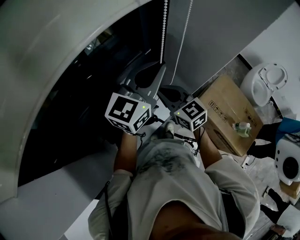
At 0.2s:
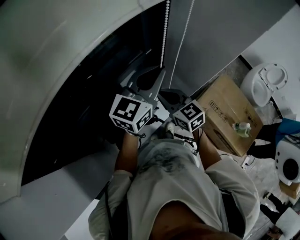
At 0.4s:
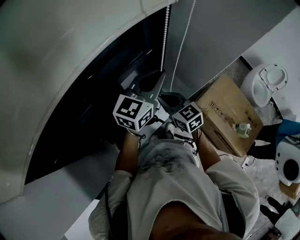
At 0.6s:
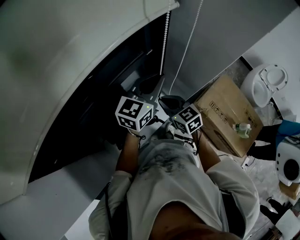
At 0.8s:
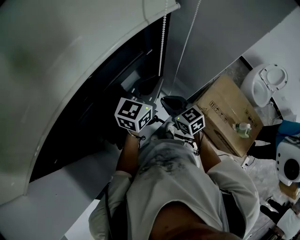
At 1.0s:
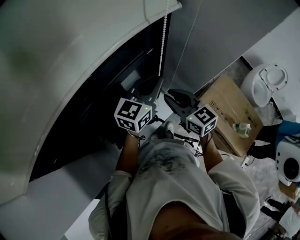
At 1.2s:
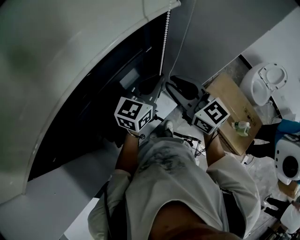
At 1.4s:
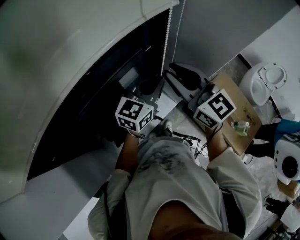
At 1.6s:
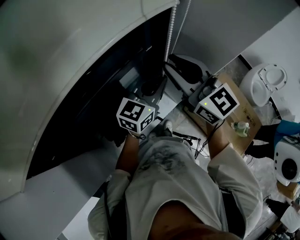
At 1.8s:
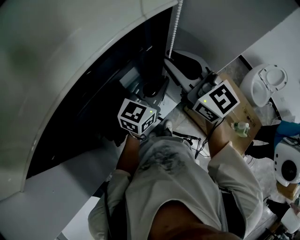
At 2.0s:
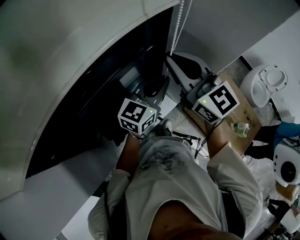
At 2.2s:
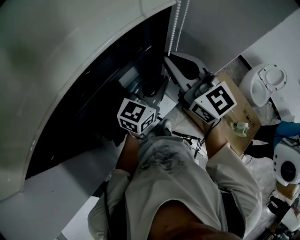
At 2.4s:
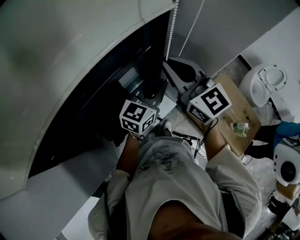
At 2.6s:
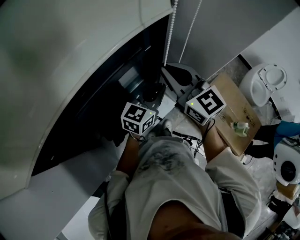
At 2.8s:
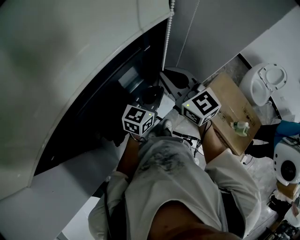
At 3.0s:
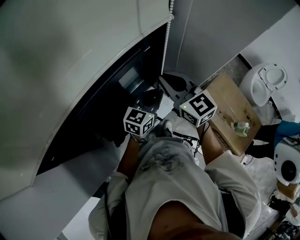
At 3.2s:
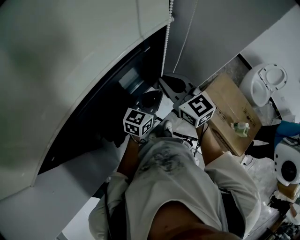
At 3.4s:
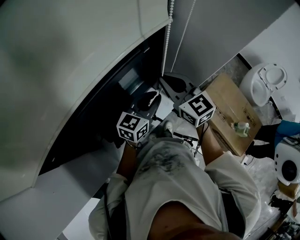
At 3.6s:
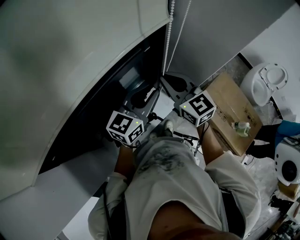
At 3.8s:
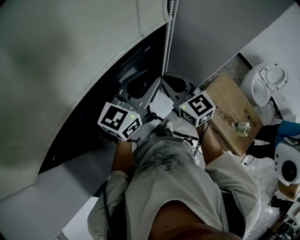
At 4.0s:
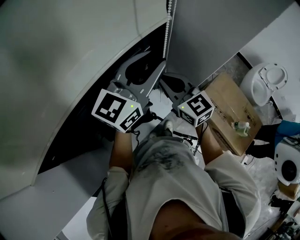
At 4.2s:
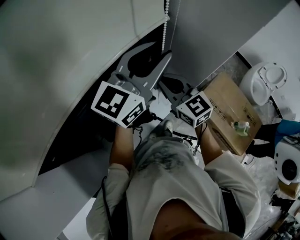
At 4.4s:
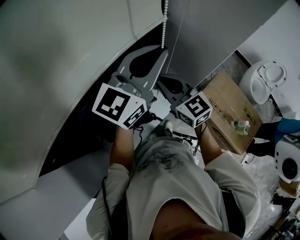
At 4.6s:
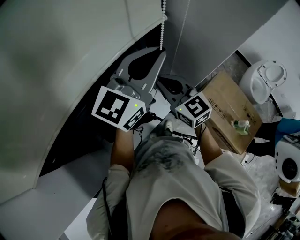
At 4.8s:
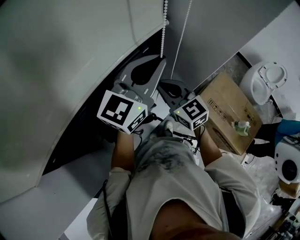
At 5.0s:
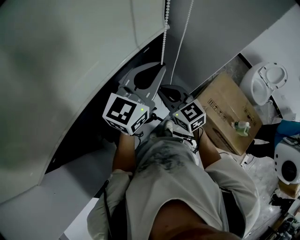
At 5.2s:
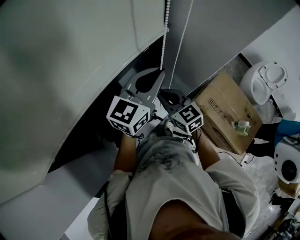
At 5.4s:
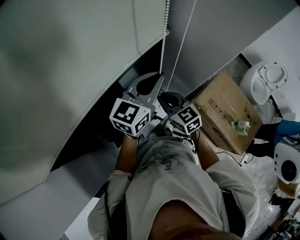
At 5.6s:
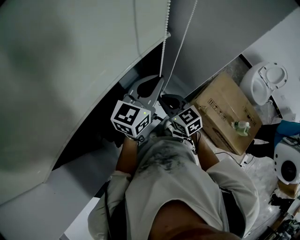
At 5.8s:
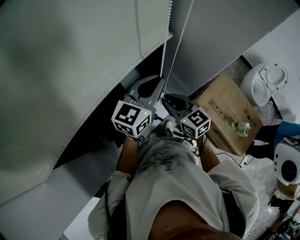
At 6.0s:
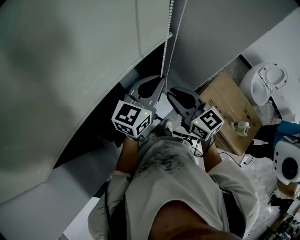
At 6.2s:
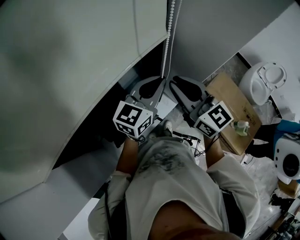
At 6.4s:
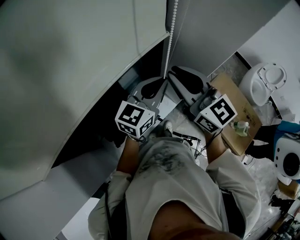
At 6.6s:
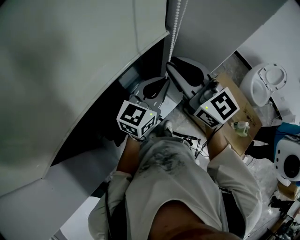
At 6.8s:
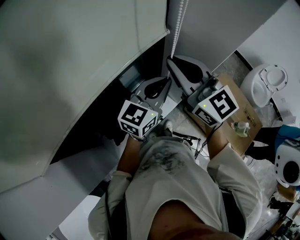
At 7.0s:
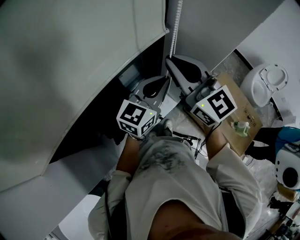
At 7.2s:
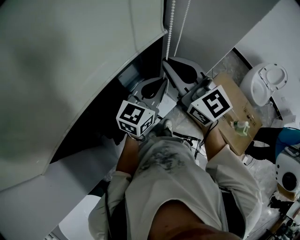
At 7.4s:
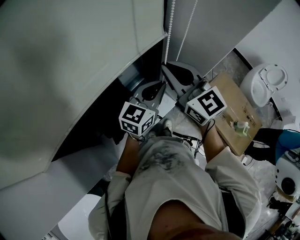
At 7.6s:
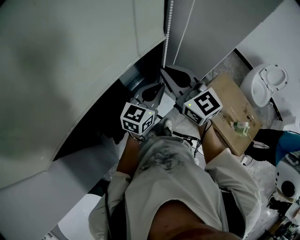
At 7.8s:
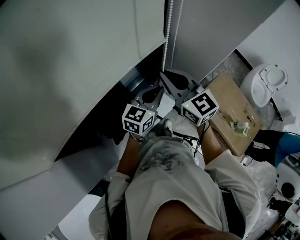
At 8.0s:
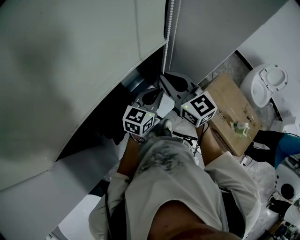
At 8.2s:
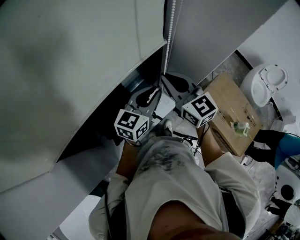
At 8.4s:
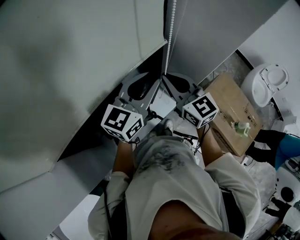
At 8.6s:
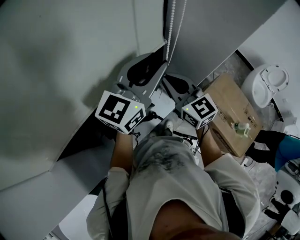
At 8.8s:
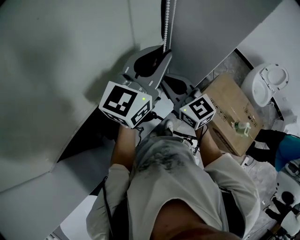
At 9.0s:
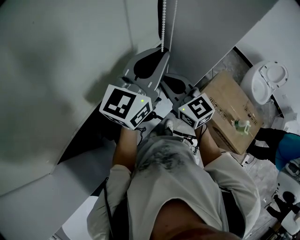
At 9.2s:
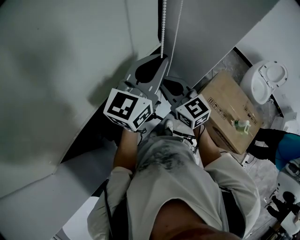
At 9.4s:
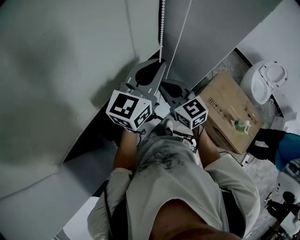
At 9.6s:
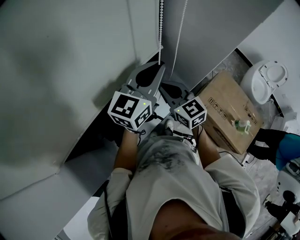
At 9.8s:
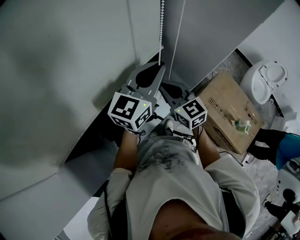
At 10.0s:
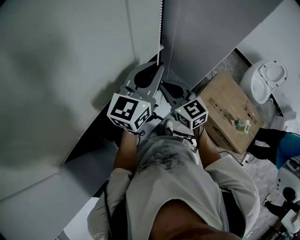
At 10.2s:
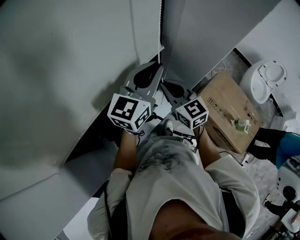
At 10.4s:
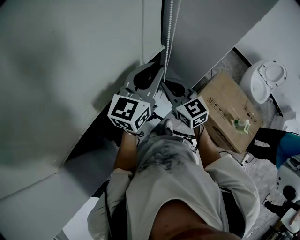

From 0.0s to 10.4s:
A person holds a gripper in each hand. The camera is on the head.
From 0.0s to 1.4s: The left gripper moves downward, some 10 cm. The right gripper is displaced upward by approximately 15 cm.
From 1.4s to 3.0s: The right gripper heads downward, covering some 5 cm. Meanwhile the left gripper travels downward by some 10 cm.
From 3.0s to 4.4s: The left gripper moves upward, approximately 25 cm, swivels approximately 30 degrees, and opens, then closes once more.
From 4.4s to 6.0s: The left gripper travels downward by roughly 15 cm; the right gripper travels downward and back again, about 15 cm each way.
From 6.0s to 7.4s: The right gripper goes about 10 cm upward; the left gripper shifts by approximately 5 cm.
From 7.4s to 9.0s: The right gripper goes some 5 cm downward, while the left gripper travels upward by approximately 15 cm, and opens, then closes again.
From 9.0s to 10.4s: Both grippers travel together downward, about 5 cm.

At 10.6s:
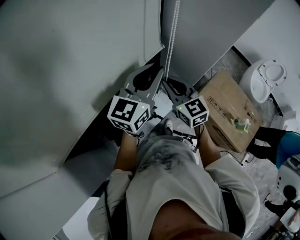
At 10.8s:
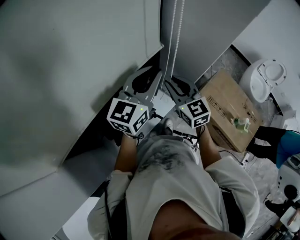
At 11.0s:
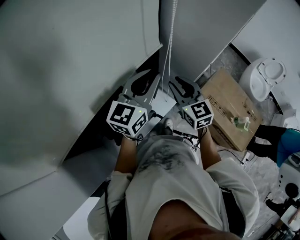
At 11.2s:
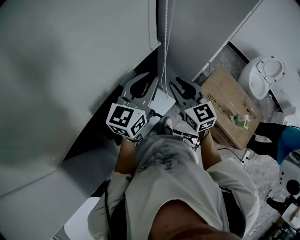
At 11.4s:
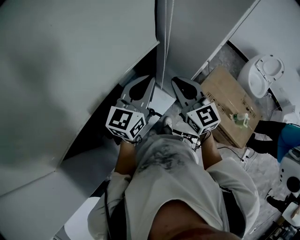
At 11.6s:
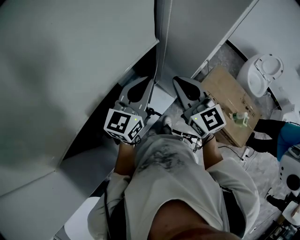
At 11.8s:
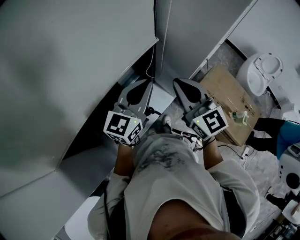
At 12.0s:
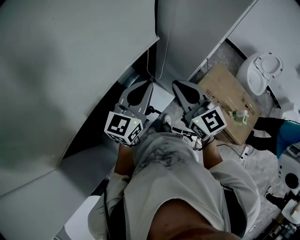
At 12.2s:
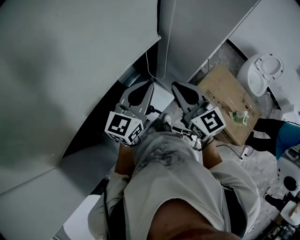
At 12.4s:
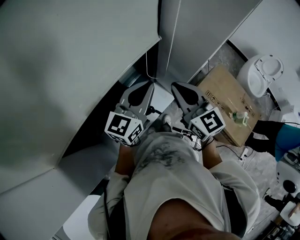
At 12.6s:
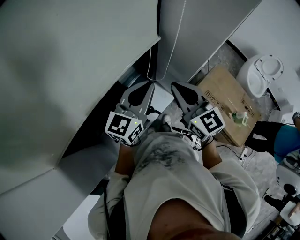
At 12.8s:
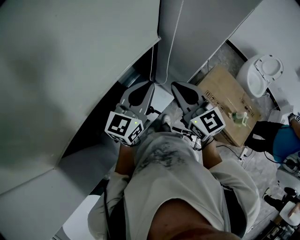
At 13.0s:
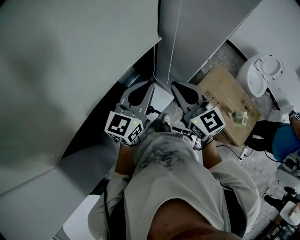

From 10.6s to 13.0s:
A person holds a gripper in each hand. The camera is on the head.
From 10.6s to 11.8s: The left gripper travels backward by some 5 cm, while the right gripper shifts some 10 cm upward and backward, and opens, then closes again.
From 11.8s to 13.0s: The grippers make only small movements.

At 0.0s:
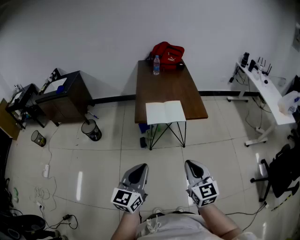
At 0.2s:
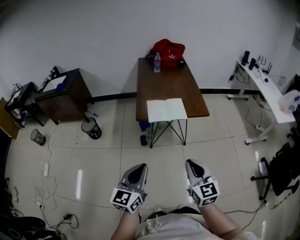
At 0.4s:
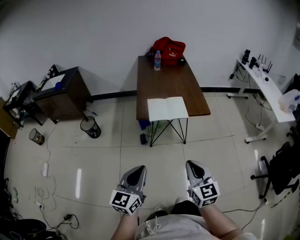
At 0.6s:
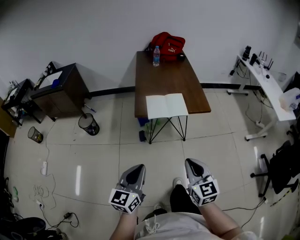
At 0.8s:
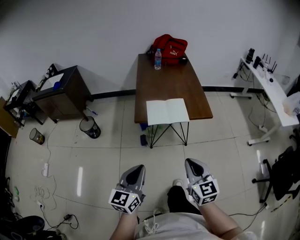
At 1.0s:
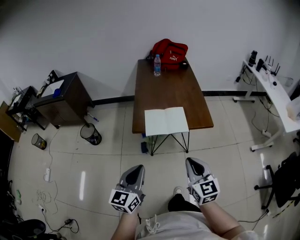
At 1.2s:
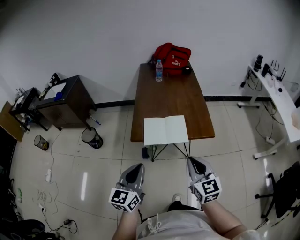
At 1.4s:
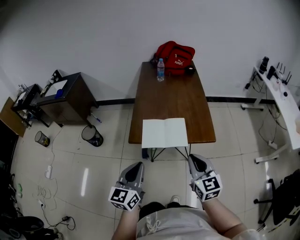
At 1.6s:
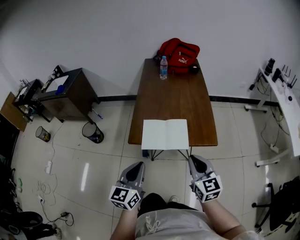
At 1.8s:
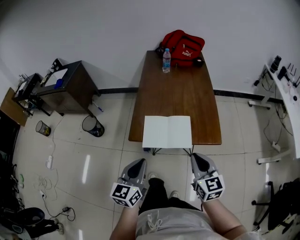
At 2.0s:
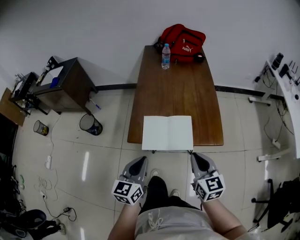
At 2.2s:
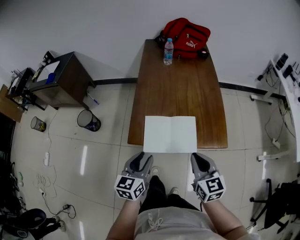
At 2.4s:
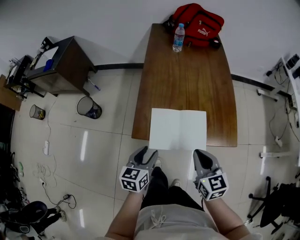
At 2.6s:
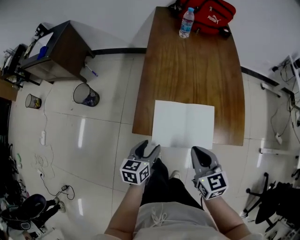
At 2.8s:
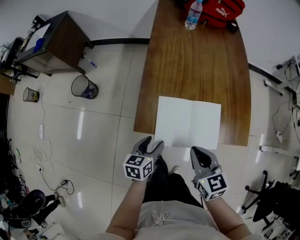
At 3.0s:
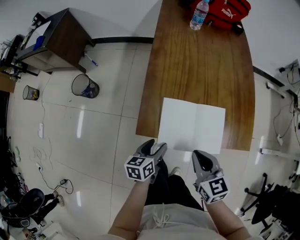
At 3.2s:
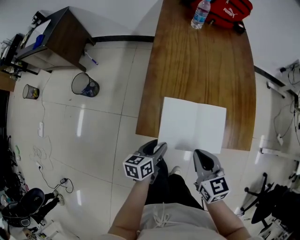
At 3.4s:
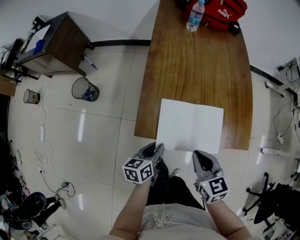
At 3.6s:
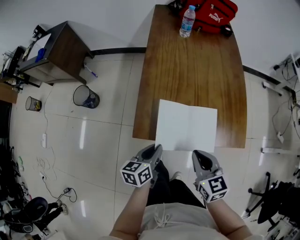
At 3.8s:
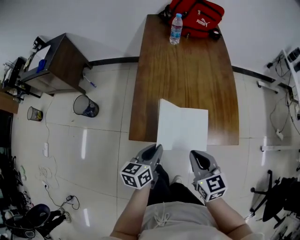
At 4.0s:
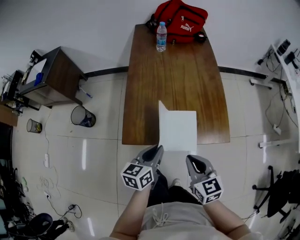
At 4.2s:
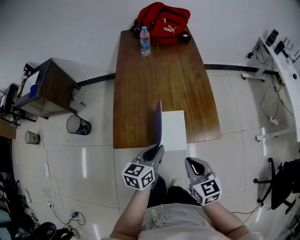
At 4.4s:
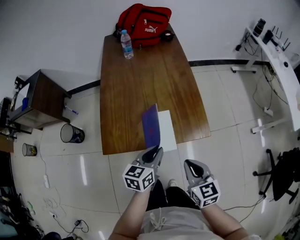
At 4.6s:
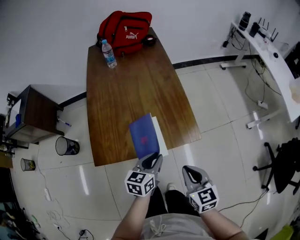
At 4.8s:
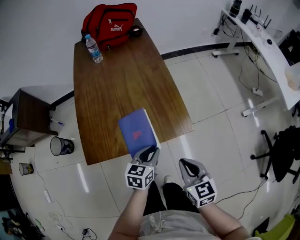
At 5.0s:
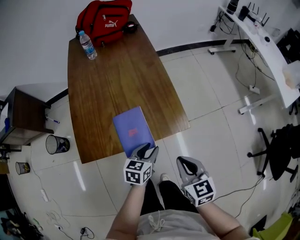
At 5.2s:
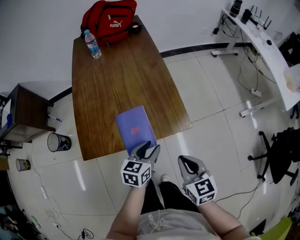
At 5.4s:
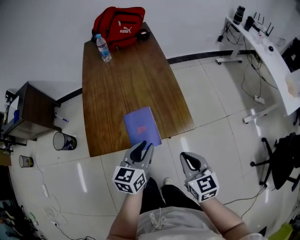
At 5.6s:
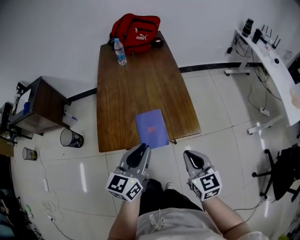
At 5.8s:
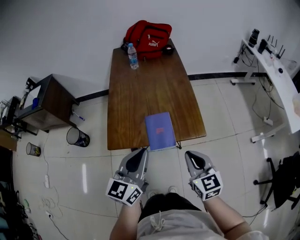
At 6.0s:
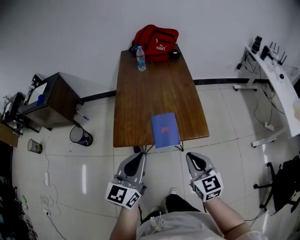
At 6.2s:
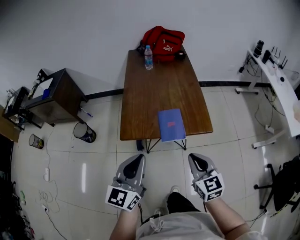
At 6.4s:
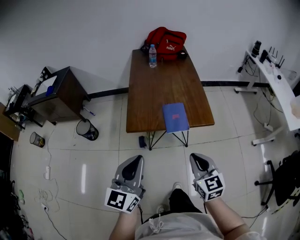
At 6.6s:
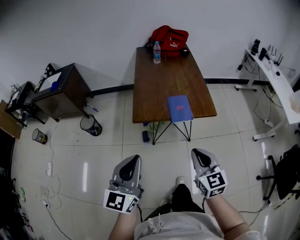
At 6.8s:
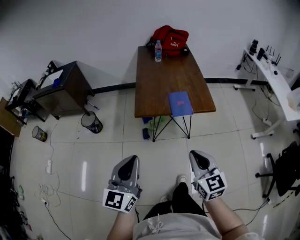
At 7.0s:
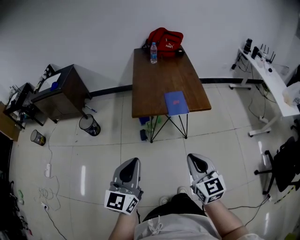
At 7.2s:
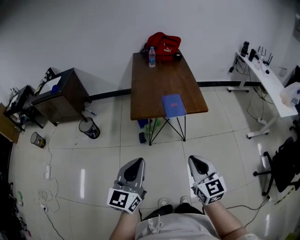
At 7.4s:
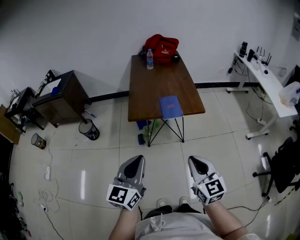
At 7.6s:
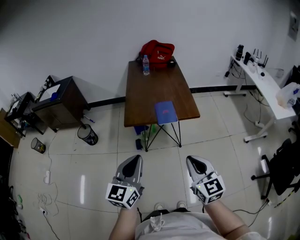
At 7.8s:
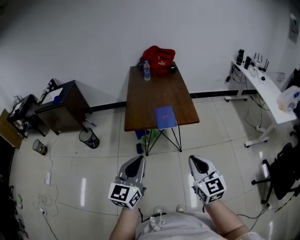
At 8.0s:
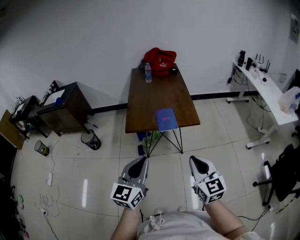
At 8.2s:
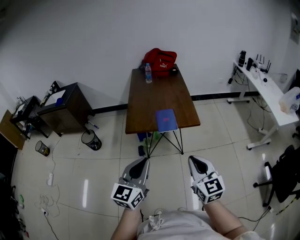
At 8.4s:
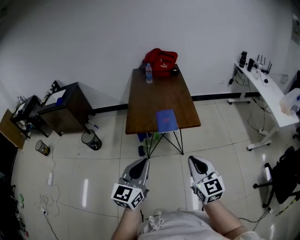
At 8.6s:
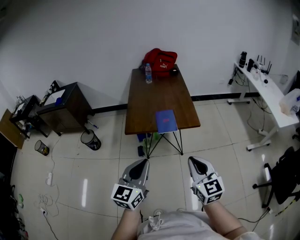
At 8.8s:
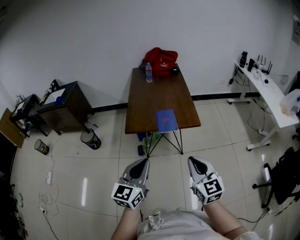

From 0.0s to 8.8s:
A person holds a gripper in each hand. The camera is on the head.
From 0.0s to 1.4s: Both grippers travel together forward, about 25 cm.
From 1.4s to 3.0s: The left gripper goes about 35 cm downward and forward, swivels about 40 degrees, and opens; the right gripper goes about 25 cm downward, forward and to the left, and changes its angle by approximately 30 degrees.
From 3.0s to 4.4s: The left gripper shifts roughly 25 cm to the right and upward, swivels approximately 30 degrees, and closes up, while the right gripper is displaced to the right and backward by approximately 15 cm.
From 4.4s to 5.8s: The left gripper travels upward and backward by roughly 20 cm, turns by about 30 degrees, and opens, then closes once more; the right gripper travels upward by roughly 5 cm.
From 5.8s to 7.4s: The grippers both shift backward by about 30 cm.
From 7.4s to 8.8s: The two grippers go roughly 5 cm to the right.

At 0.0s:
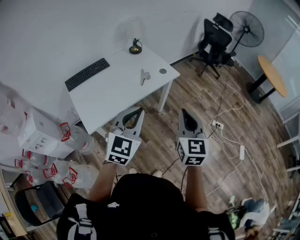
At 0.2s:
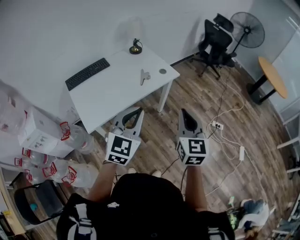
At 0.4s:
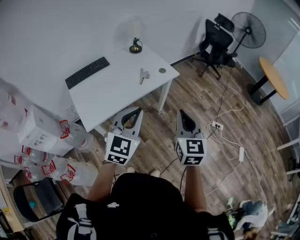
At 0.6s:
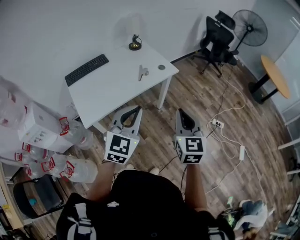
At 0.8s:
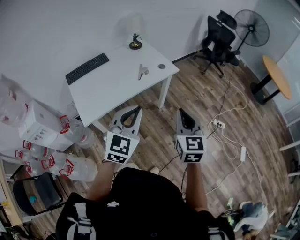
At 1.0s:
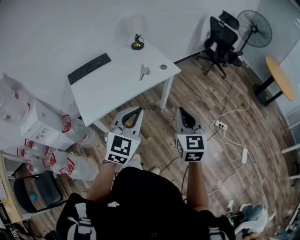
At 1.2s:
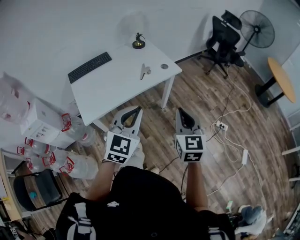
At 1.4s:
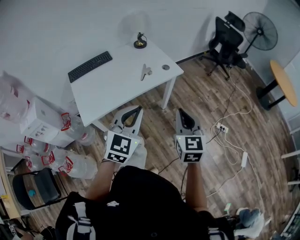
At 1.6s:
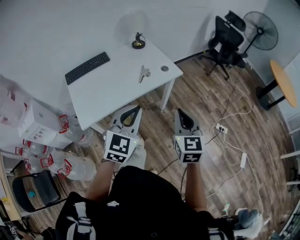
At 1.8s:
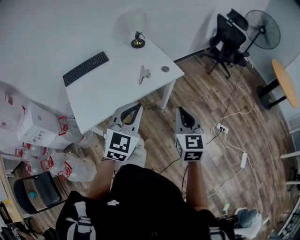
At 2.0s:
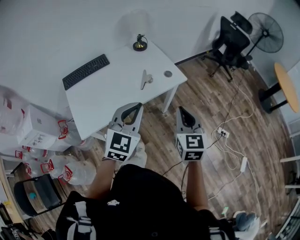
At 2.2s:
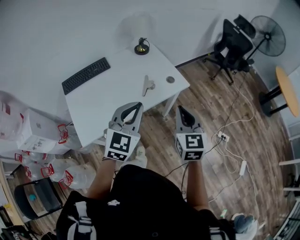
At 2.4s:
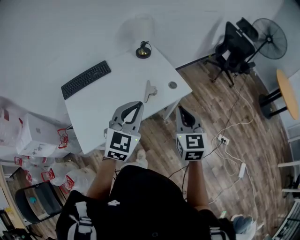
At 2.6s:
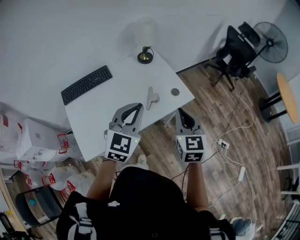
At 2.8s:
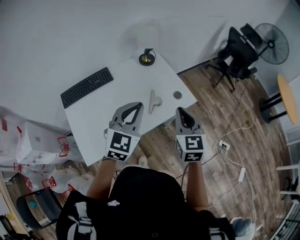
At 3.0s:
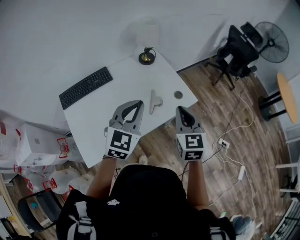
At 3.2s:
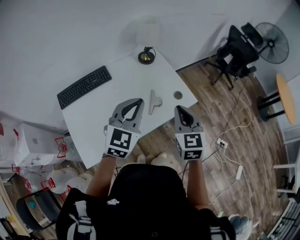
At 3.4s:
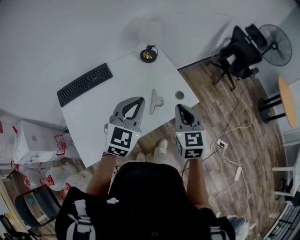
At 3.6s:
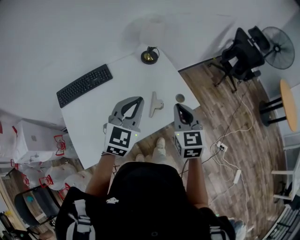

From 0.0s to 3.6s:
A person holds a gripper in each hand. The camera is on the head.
From 0.0s to 1.8s: The right gripper moves forward and downward, approximately 10 cm, while the left gripper moves forward, roughly 10 cm.
From 1.8s to 3.6s: Both grippers travel together forward and to the left, approximately 30 cm.
